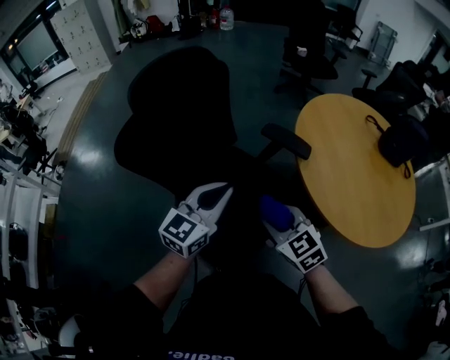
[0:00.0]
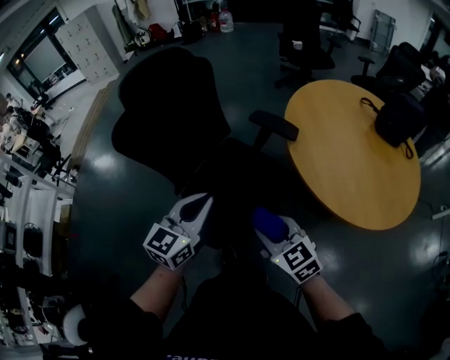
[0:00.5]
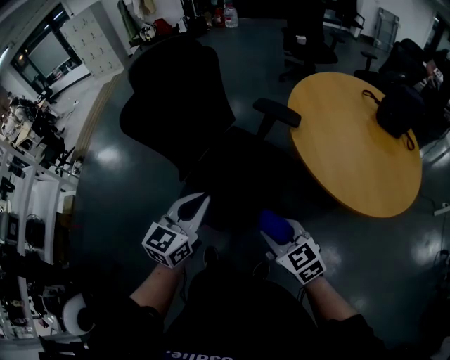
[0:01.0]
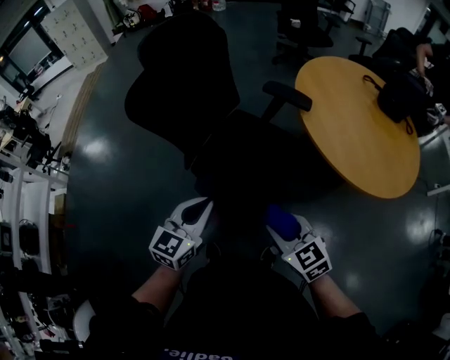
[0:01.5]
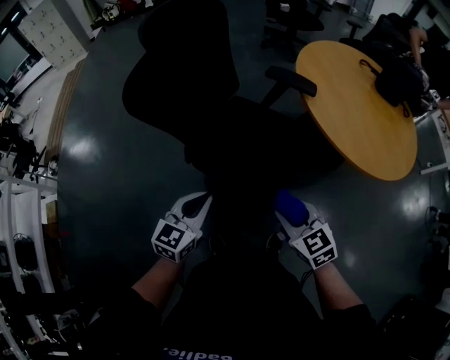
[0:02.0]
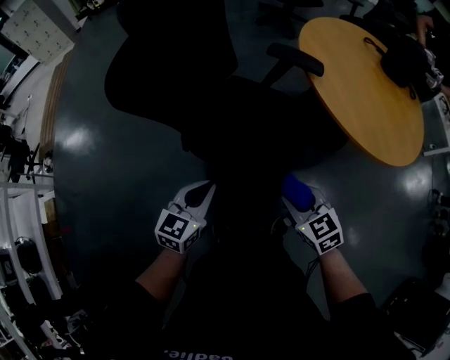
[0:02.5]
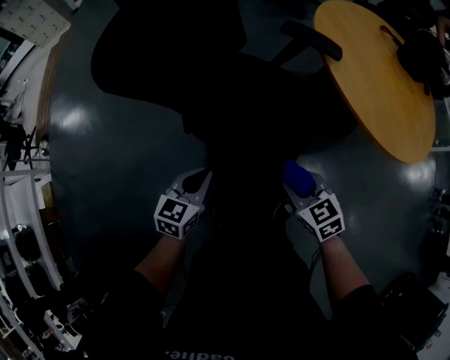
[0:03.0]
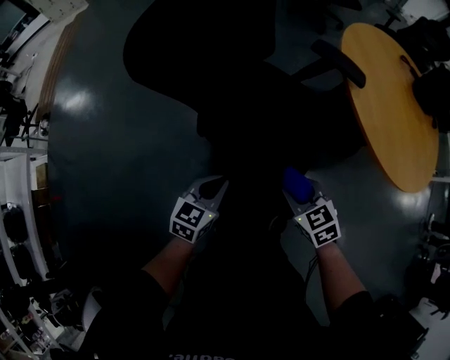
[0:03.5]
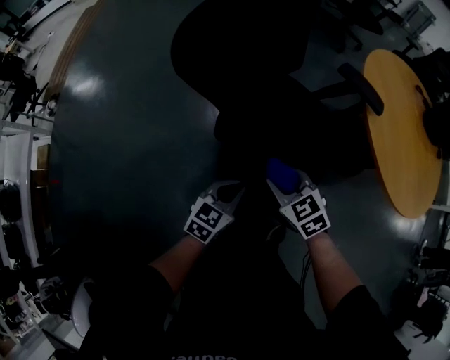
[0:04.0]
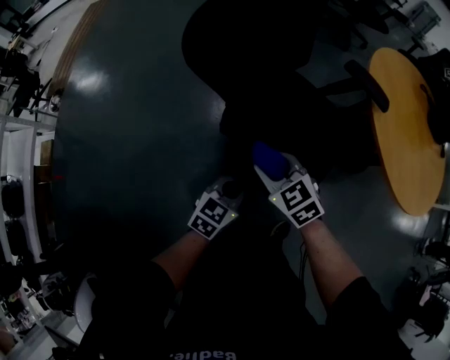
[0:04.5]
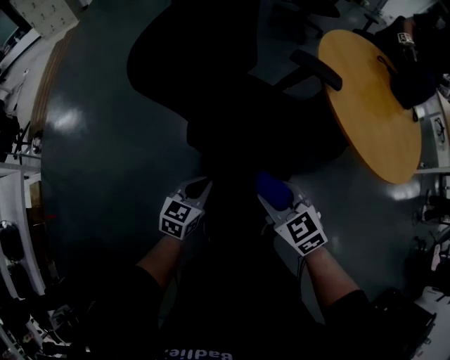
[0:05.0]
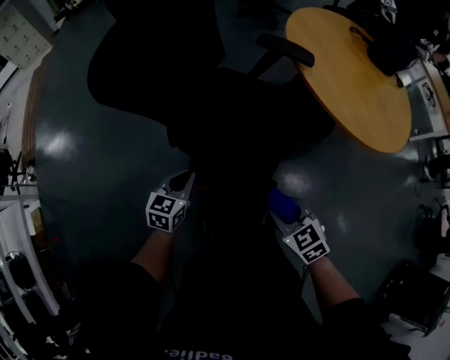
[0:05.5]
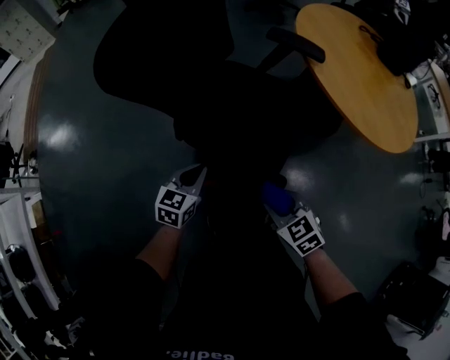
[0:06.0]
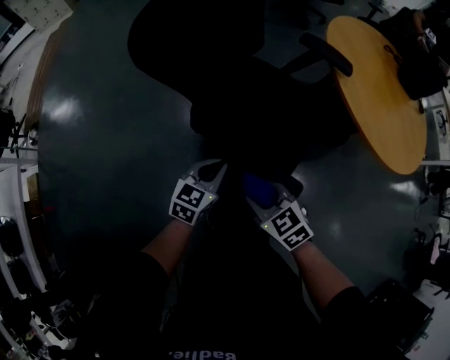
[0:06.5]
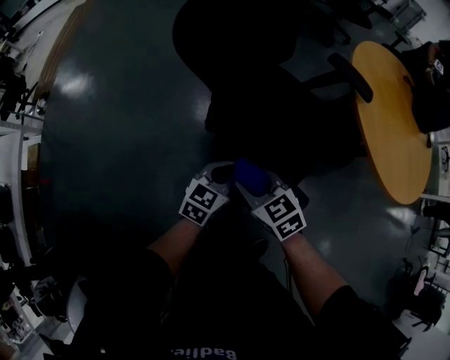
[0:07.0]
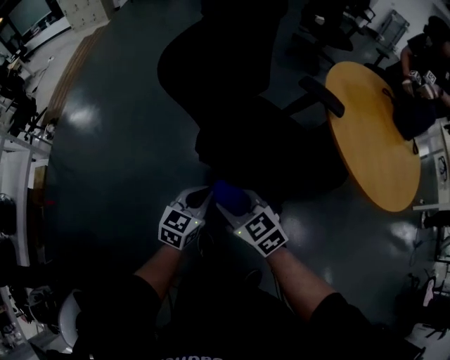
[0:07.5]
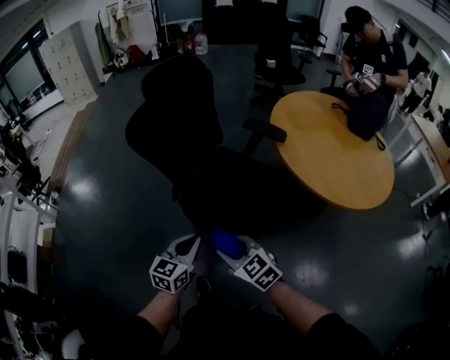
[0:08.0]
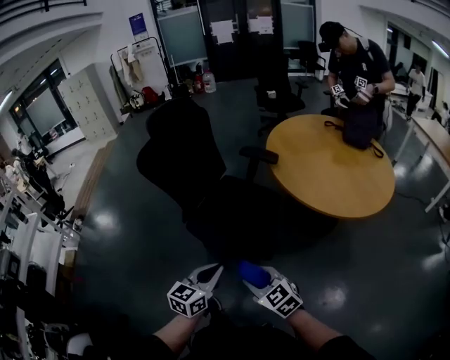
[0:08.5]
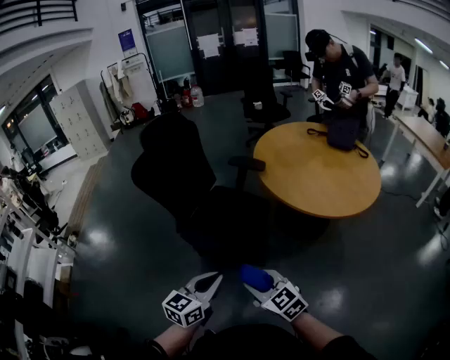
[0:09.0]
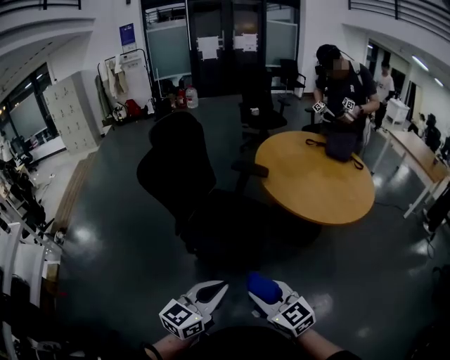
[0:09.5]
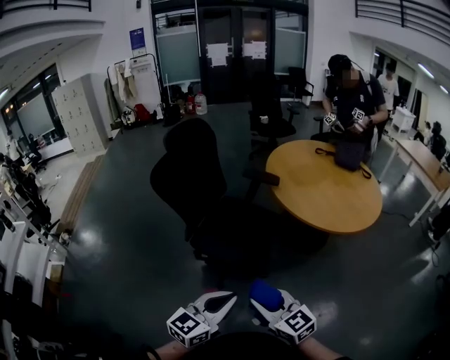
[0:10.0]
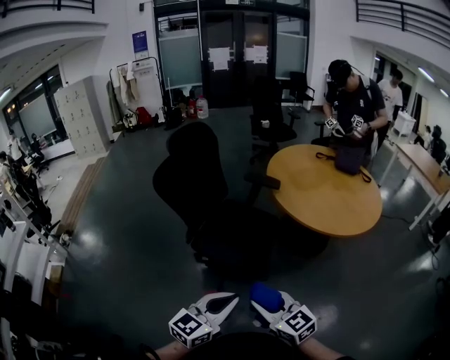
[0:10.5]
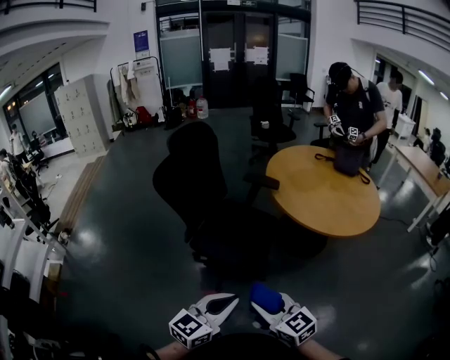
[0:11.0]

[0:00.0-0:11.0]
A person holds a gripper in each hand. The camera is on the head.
0.0 to 2.0 s: The left gripper heads backward, to the left and downward, covering about 25 cm. Meanwhile the right gripper goes about 15 cm backward.
2.0 to 3.5 s: The right gripper shifts about 15 cm downward and forward, while the left gripper moves downward, approximately 15 cm.
3.5 to 5.5 s: The right gripper is displaced backward by roughly 10 cm, and travels to the left and back again, roughly 20 cm each way.
5.5 to 7.5 s: The right gripper is displaced to the left by approximately 20 cm, and rotates some 30 degrees. The left gripper travels upward by some 5 cm.
7.5 to 9.0 s: The left gripper is displaced backward, to the right and upward by approximately 35 cm; the right gripper is displaced backward and to the right by roughly 35 cm.
9.0 to 11.0 s: The left gripper is displaced to the left, upward and backward by some 10 cm. The right gripper shifts some 10 cm to the left and upward.

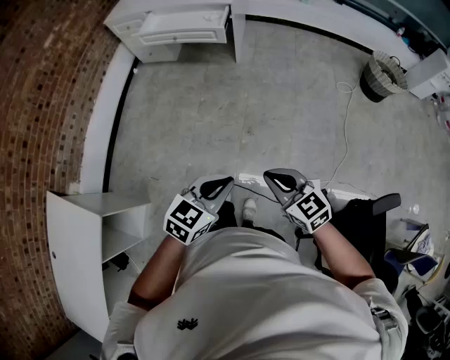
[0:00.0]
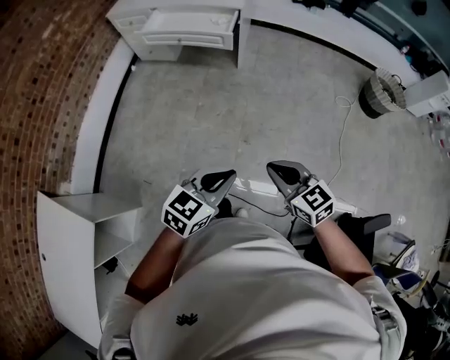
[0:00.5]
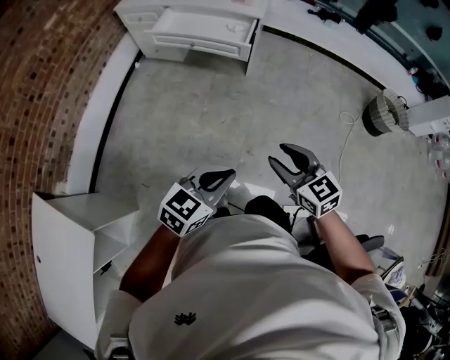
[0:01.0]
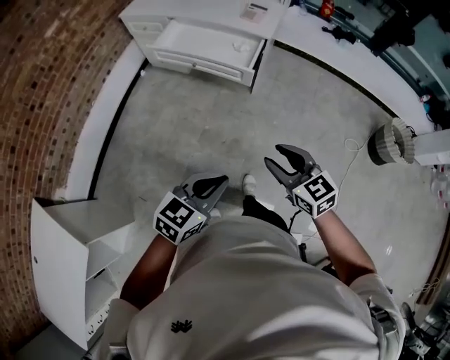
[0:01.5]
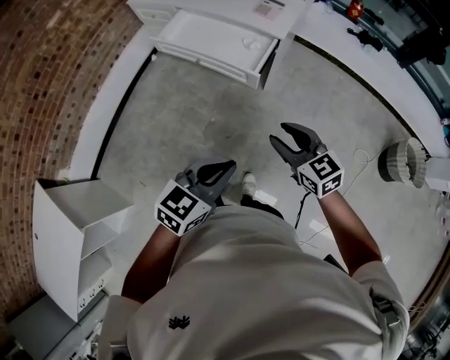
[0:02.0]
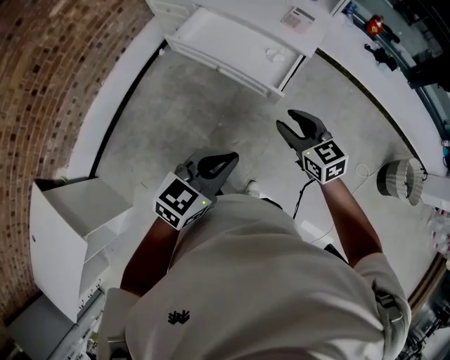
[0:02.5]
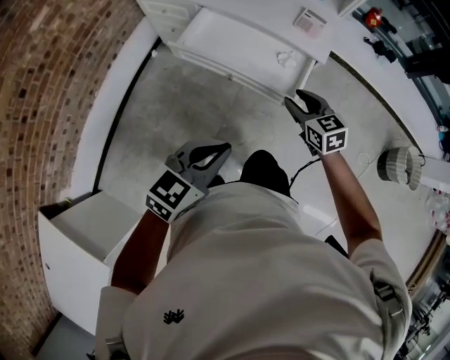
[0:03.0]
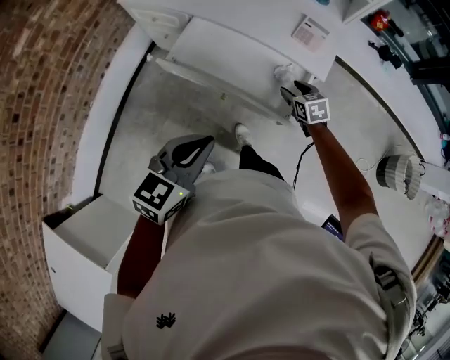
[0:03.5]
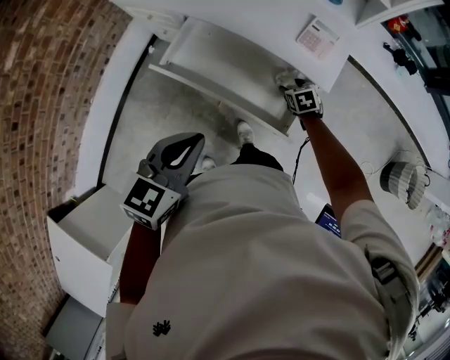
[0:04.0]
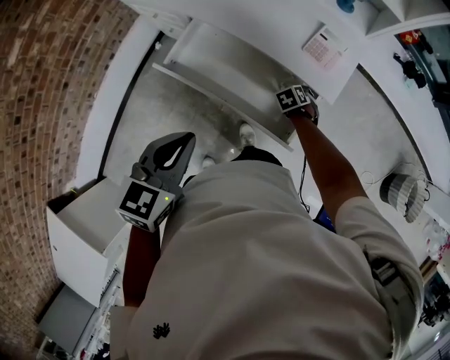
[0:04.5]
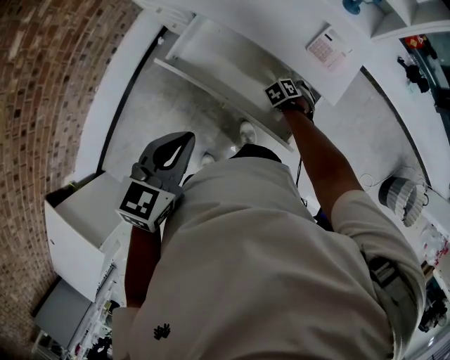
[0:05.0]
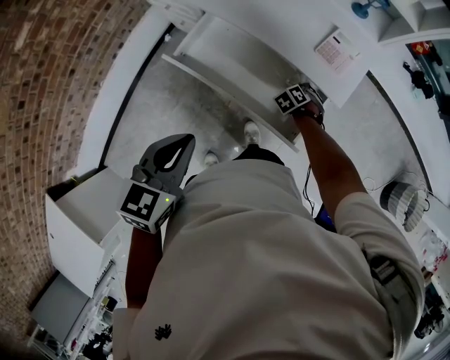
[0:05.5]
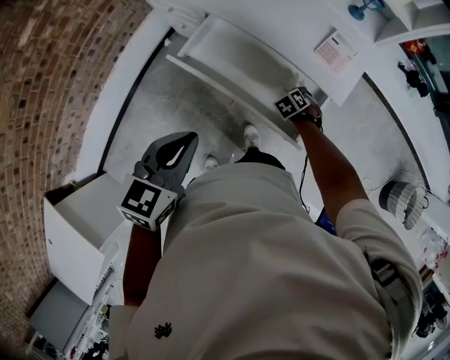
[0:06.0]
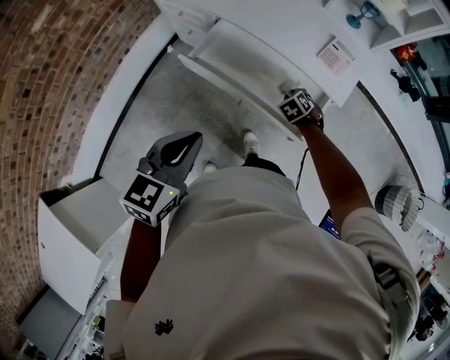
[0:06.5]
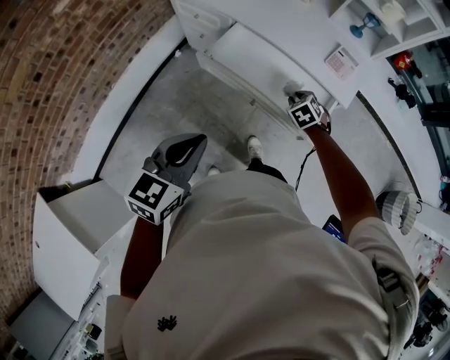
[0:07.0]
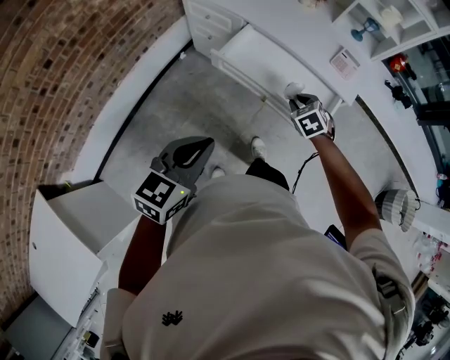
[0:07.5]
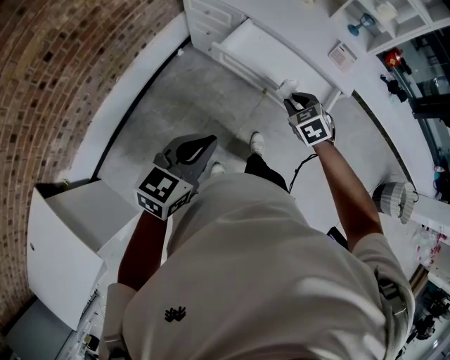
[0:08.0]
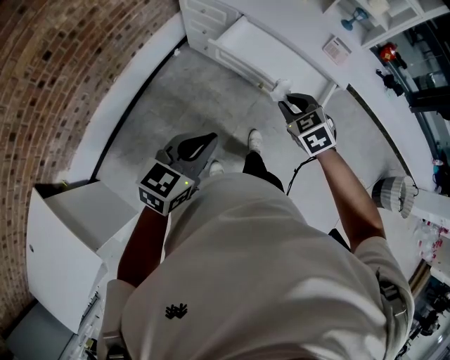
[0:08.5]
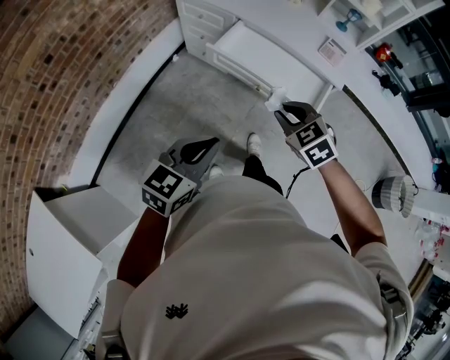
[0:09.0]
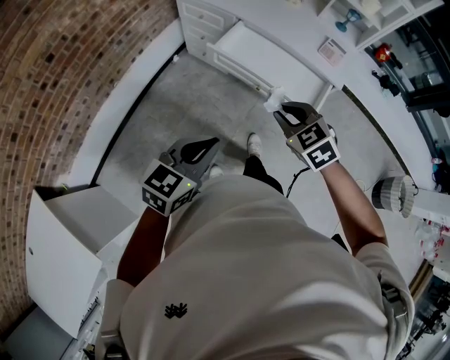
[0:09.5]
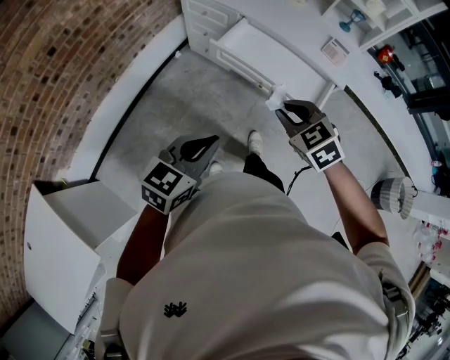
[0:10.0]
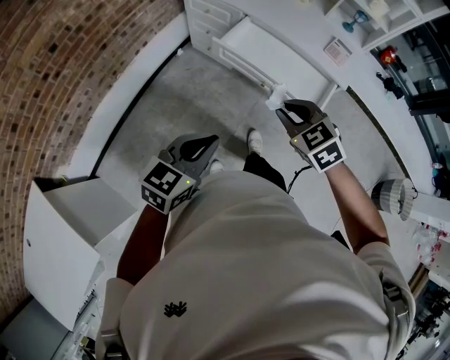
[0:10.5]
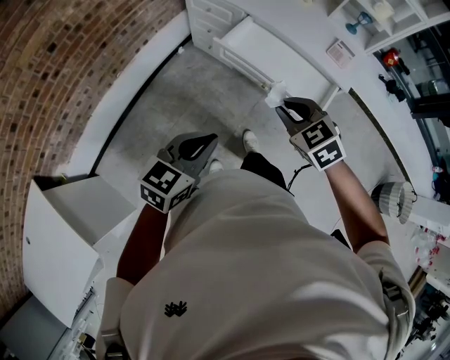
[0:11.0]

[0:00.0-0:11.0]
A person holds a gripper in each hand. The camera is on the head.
0.0 to 2.0 s: Both grippers are carried forward, approximately 50 cm. The right gripper opens.
2.0 to 3.5 s: The left gripper shifts approximately 40 cm forward and to the left, while the right gripper is displaced forward and downward by approximately 50 cm, and changes its angle by roughly 30 degrees.
3.5 to 5.5 s: The left gripper ends up approximately 10 cm from where it was. The right gripper heads downward, covering about 15 cm, rotates roughly 50 degrees, and closes its fingers.
5.5 to 7.5 s: The left gripper travels backward by some 20 cm. The right gripper shifts some 30 cm upward, backward and to the left, and rotates about 20 degrees.
7.5 to 9.0 s: The right gripper is displaced backward and upward by roughly 20 cm. The left gripper travels backward by approximately 5 cm.
9.0 to 11.0 s: There are only small adjustments of the grippers.

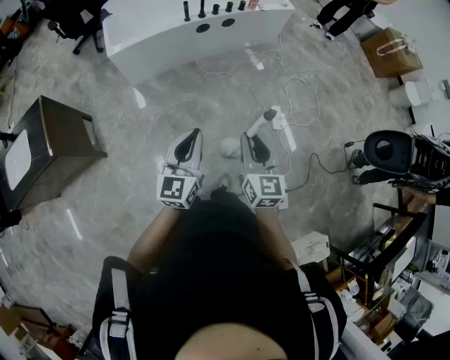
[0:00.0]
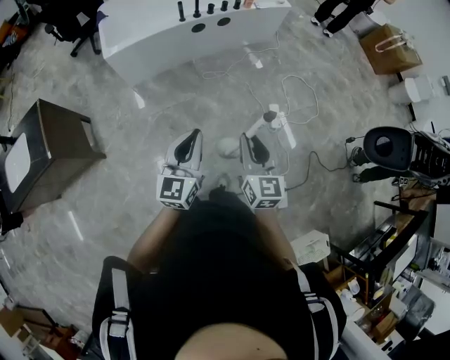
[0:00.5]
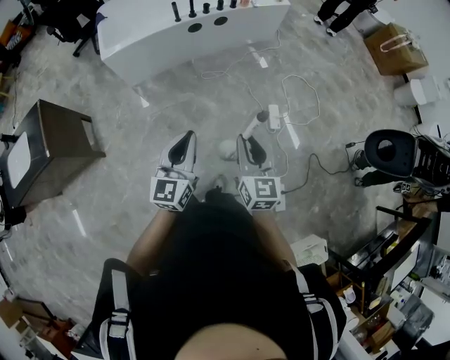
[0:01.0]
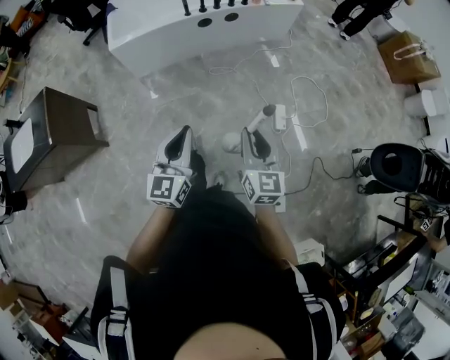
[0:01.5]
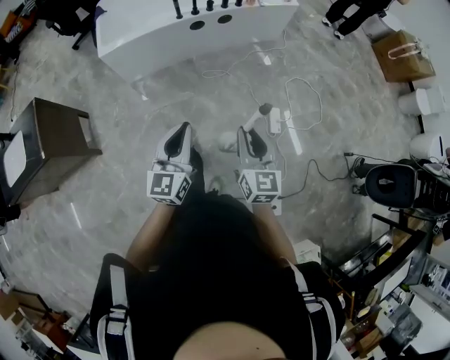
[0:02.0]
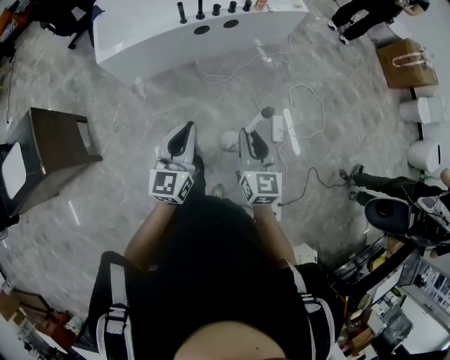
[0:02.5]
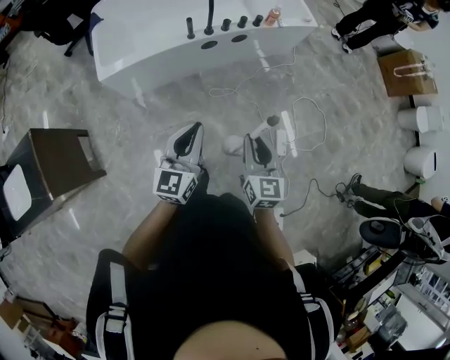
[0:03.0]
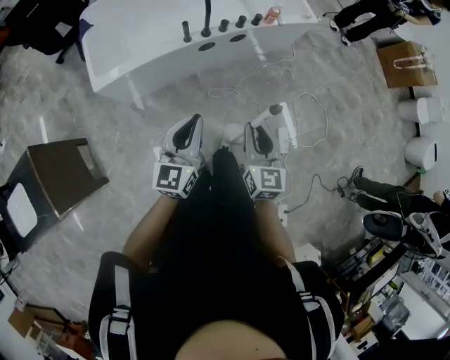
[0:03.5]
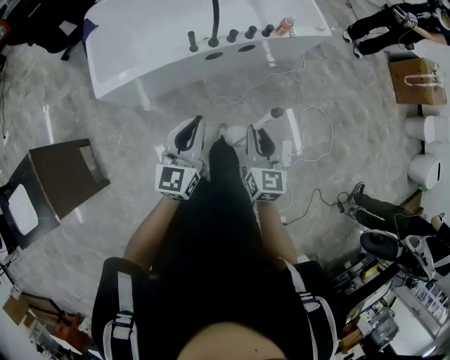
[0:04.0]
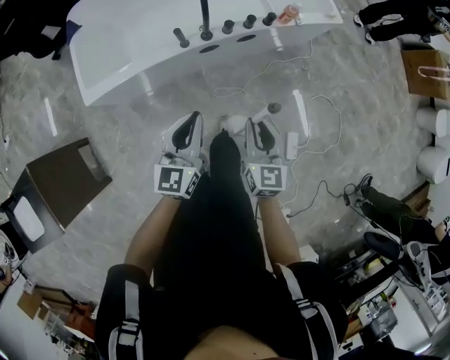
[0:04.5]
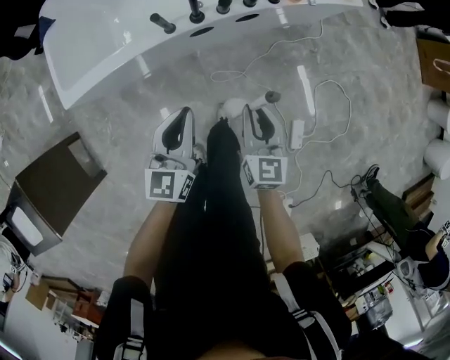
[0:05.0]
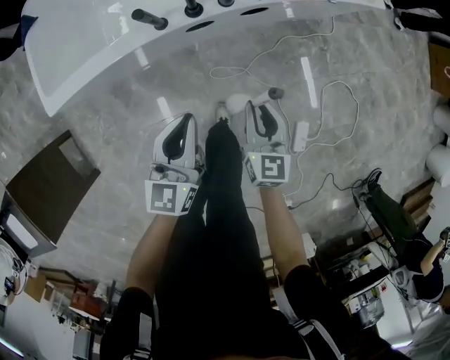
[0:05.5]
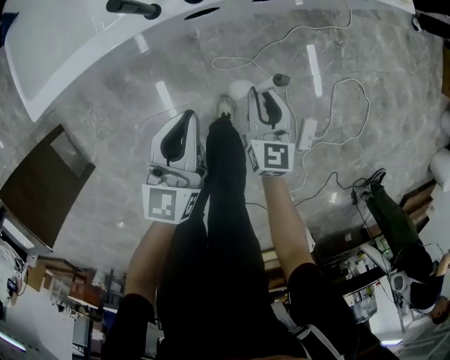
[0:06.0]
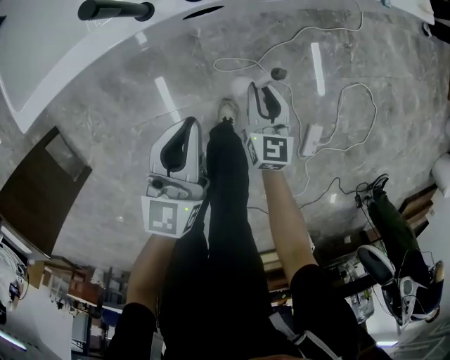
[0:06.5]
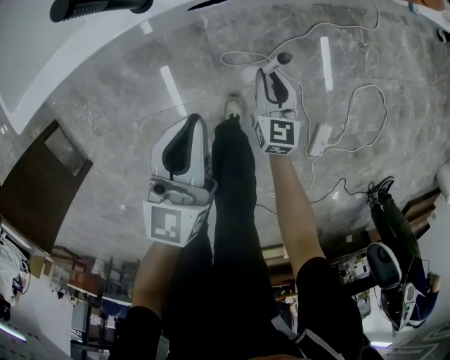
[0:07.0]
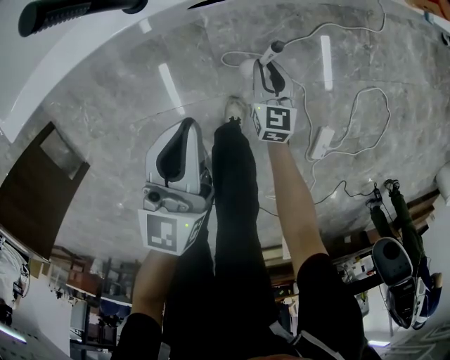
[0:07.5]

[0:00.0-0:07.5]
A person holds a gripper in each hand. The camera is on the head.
0.0 to 2.0 s: Both grippers move forward and to the right, some 15 cm.
2.0 to 4.0 s: The two grippers travel together, forward, roughly 40 cm.
4.0 to 5.5 s: The grippers both shift downward and forward by roughly 35 cm.
5.5 to 7.5 s: The right gripper travels downward by approximately 35 cm. Meanwhile the left gripper shifts roughly 20 cm downward.
